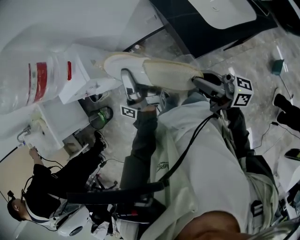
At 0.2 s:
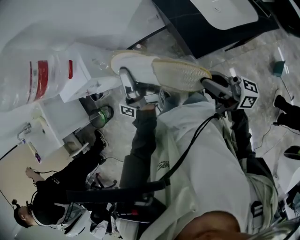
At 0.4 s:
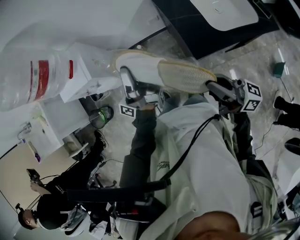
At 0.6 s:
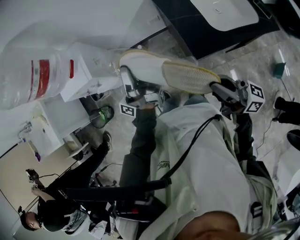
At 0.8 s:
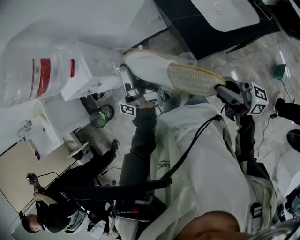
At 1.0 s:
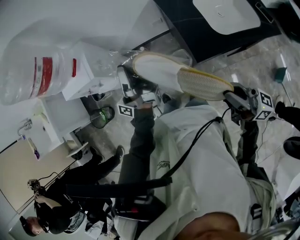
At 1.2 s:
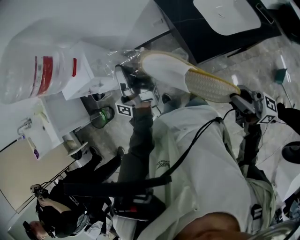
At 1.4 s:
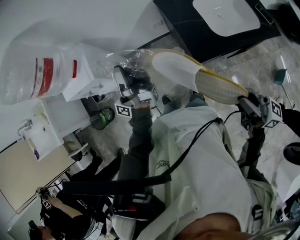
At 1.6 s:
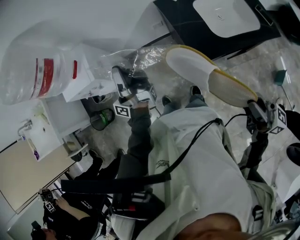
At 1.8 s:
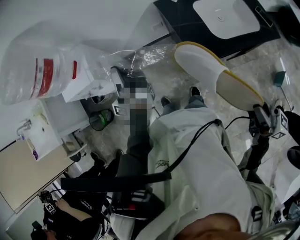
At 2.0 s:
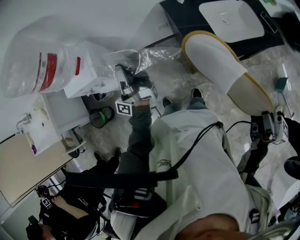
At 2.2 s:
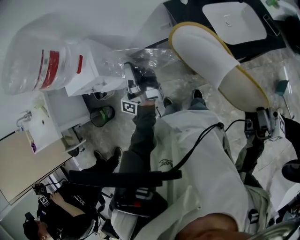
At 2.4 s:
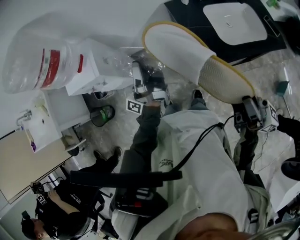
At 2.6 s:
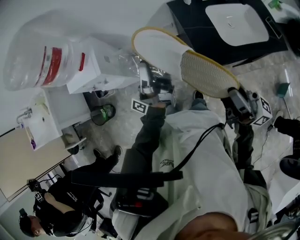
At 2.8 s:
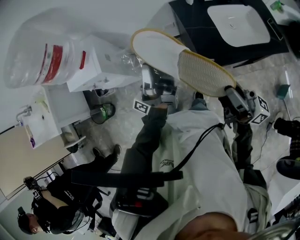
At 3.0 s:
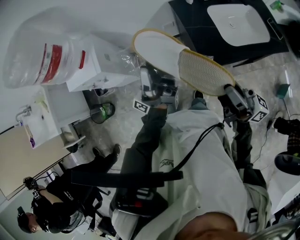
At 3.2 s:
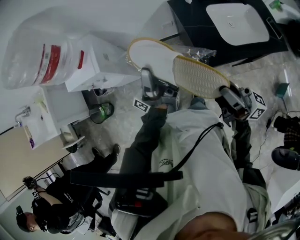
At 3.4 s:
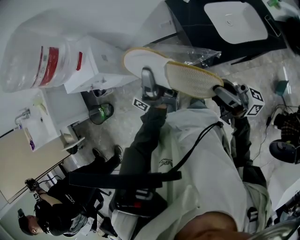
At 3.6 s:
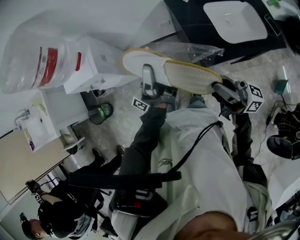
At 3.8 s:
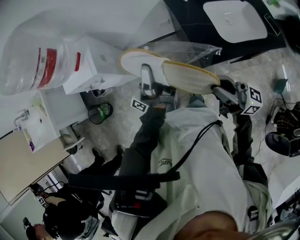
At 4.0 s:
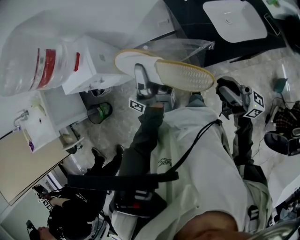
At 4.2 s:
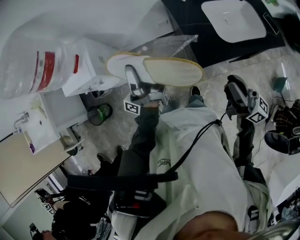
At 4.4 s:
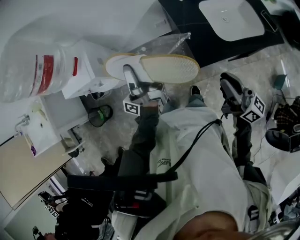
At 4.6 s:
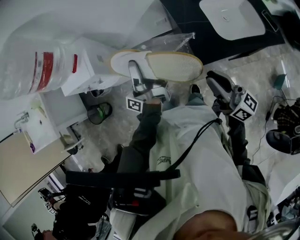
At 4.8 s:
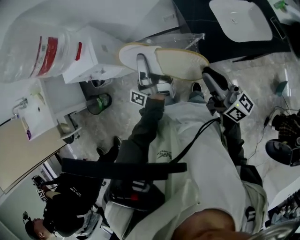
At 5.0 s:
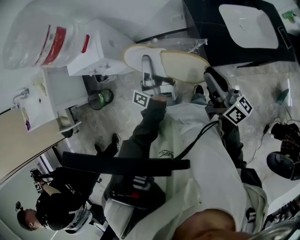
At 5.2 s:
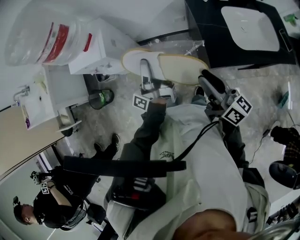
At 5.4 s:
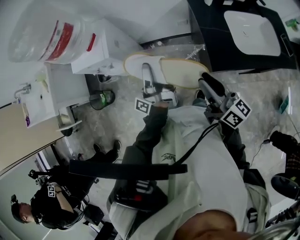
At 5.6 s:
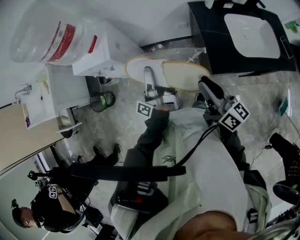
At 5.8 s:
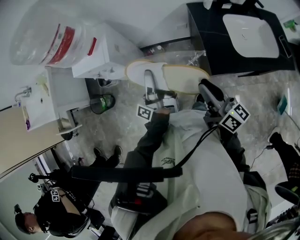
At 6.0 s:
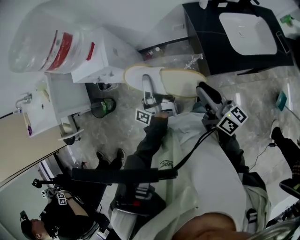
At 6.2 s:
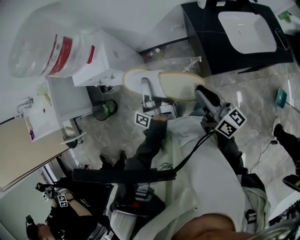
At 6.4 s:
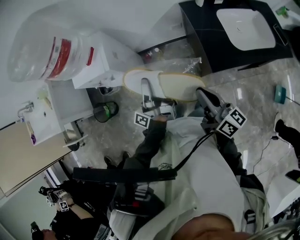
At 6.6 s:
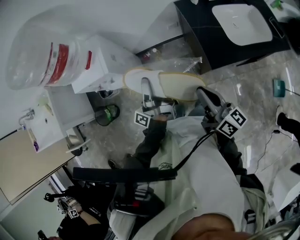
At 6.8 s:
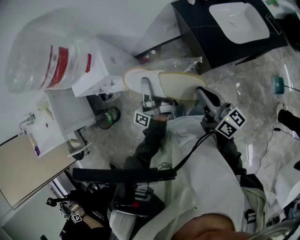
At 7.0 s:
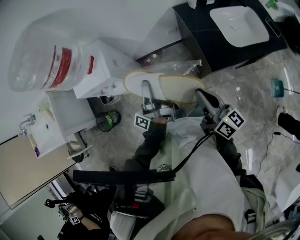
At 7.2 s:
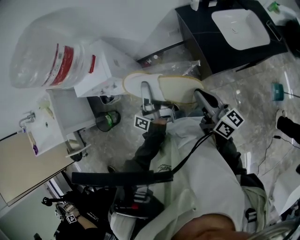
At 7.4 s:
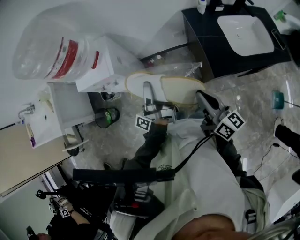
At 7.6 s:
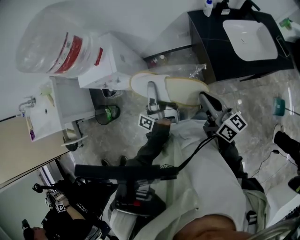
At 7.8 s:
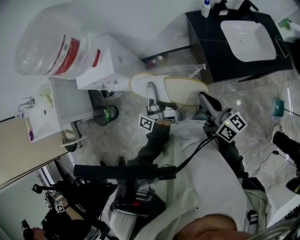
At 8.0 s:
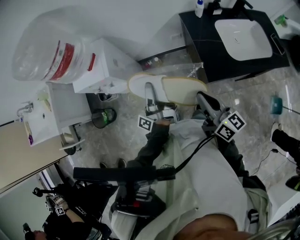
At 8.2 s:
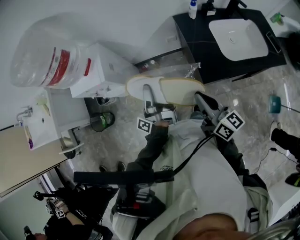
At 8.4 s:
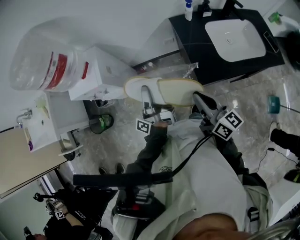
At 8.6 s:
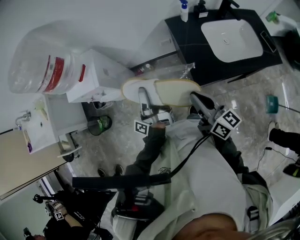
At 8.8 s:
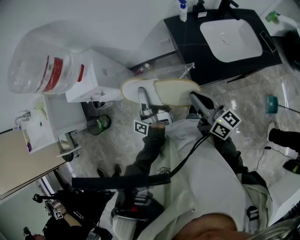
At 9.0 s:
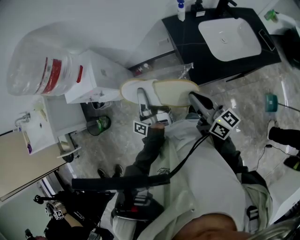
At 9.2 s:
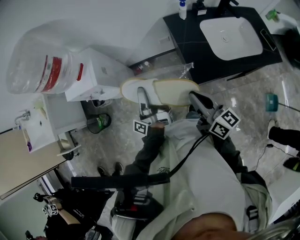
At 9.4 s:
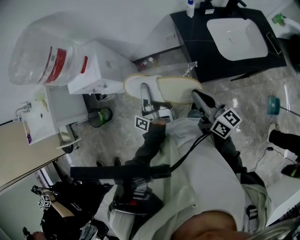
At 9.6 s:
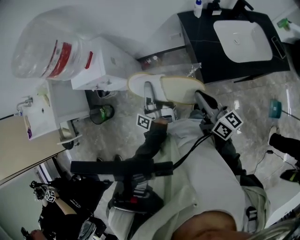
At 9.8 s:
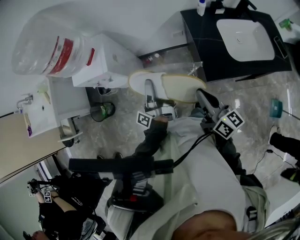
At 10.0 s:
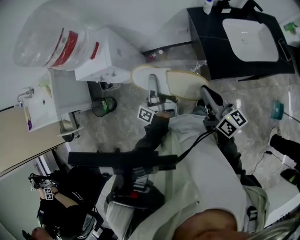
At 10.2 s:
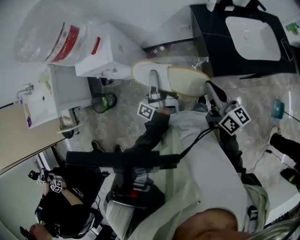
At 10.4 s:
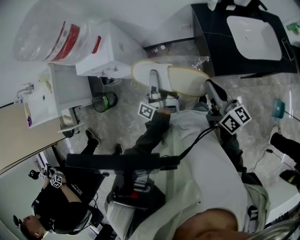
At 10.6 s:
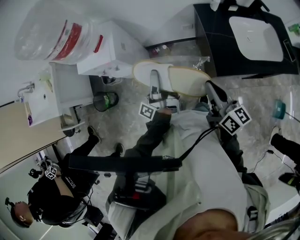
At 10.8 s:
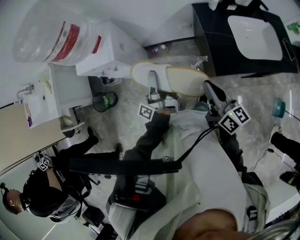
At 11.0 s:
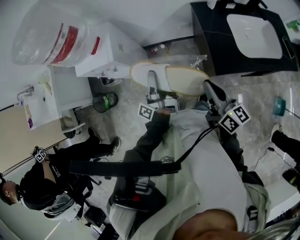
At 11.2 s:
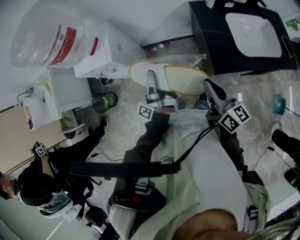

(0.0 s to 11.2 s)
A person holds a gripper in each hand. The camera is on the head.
0.0 s - 1.6 s: The right gripper moves some 20 cm.
1.6 s - 3.2 s: The right gripper ends up roughly 15 cm from where it was, and changes its angle by some 20 degrees.
3.2 s - 4.8 s: The right gripper moves some 5 cm, and swivels roughly 30 degrees.
4.8 s - 6.4 s: The right gripper shifts by roughly 10 cm.

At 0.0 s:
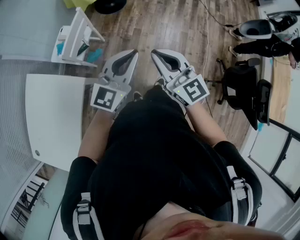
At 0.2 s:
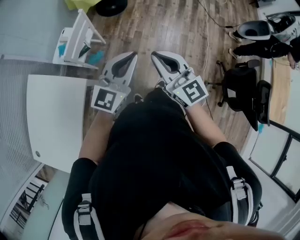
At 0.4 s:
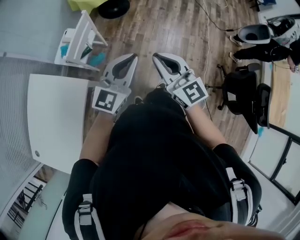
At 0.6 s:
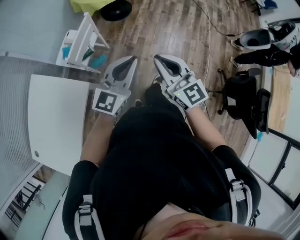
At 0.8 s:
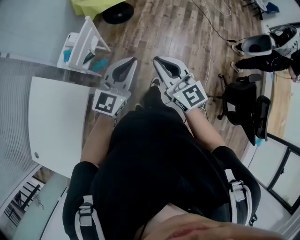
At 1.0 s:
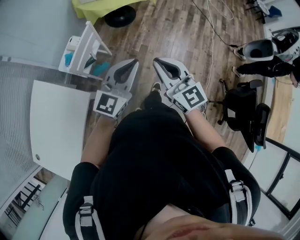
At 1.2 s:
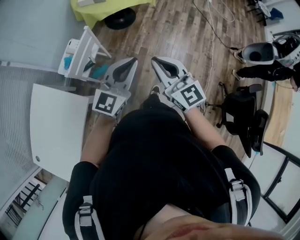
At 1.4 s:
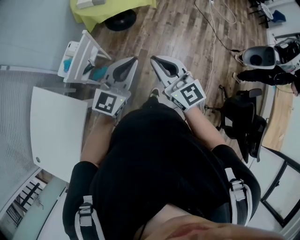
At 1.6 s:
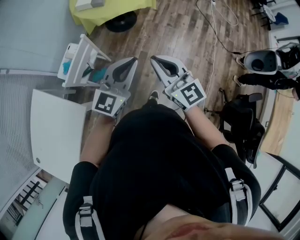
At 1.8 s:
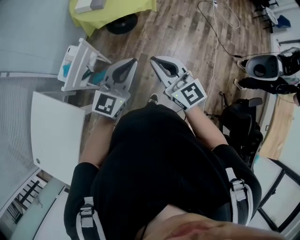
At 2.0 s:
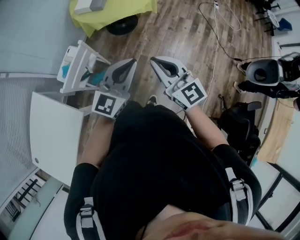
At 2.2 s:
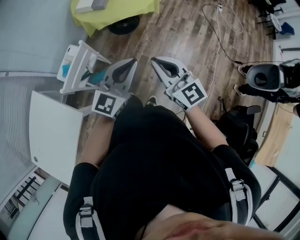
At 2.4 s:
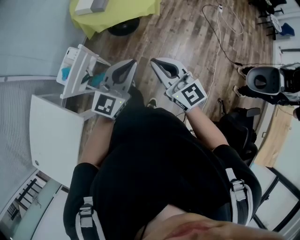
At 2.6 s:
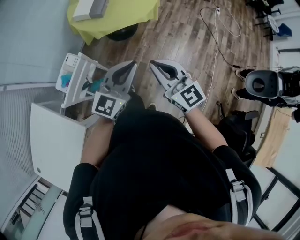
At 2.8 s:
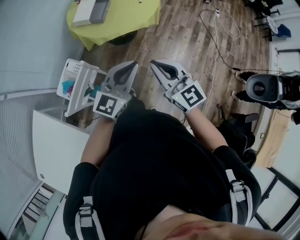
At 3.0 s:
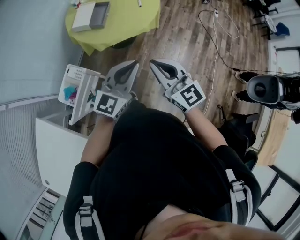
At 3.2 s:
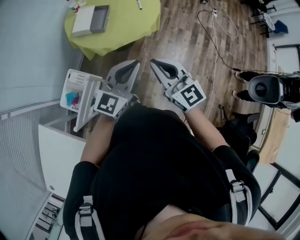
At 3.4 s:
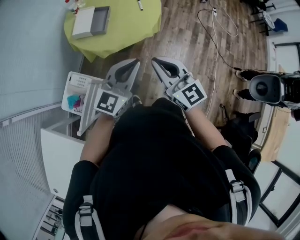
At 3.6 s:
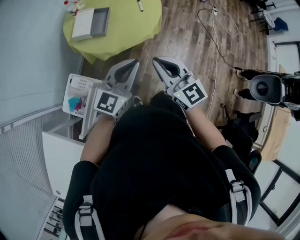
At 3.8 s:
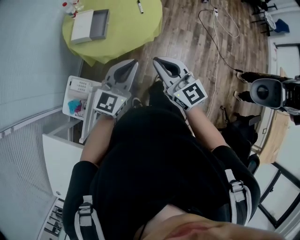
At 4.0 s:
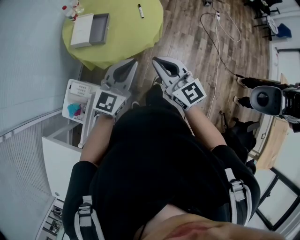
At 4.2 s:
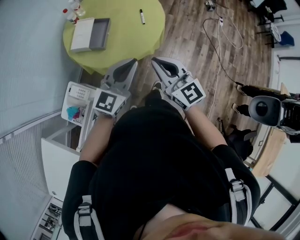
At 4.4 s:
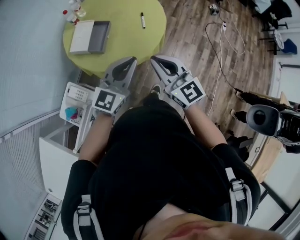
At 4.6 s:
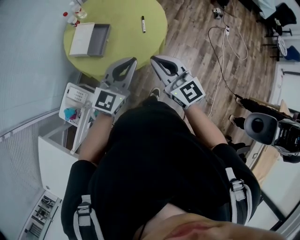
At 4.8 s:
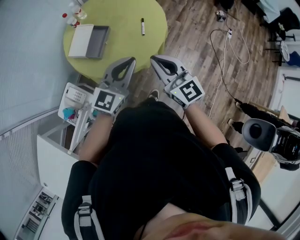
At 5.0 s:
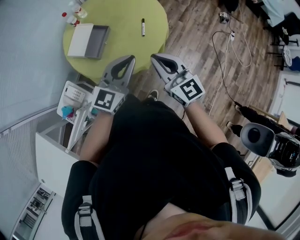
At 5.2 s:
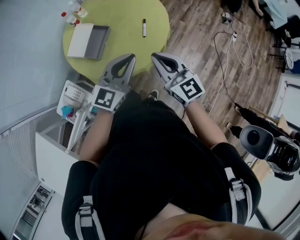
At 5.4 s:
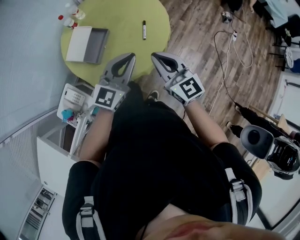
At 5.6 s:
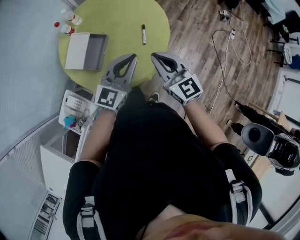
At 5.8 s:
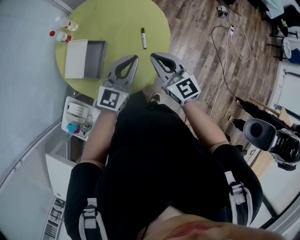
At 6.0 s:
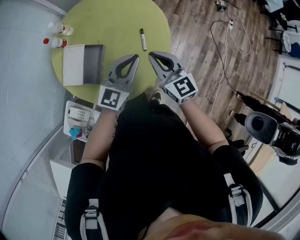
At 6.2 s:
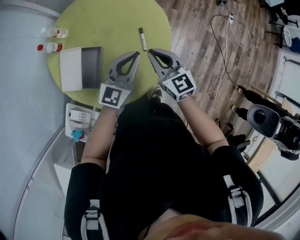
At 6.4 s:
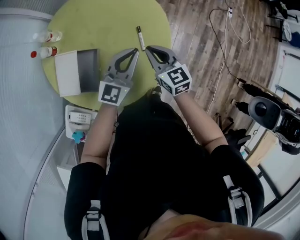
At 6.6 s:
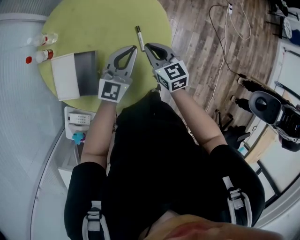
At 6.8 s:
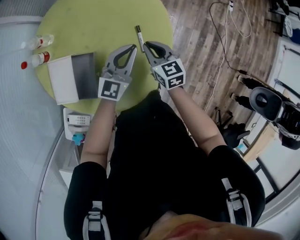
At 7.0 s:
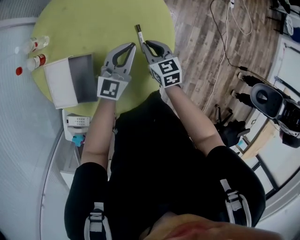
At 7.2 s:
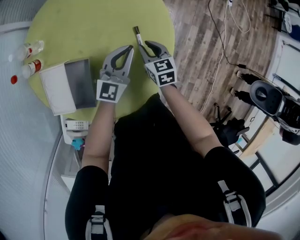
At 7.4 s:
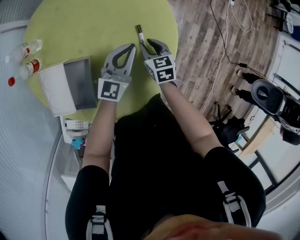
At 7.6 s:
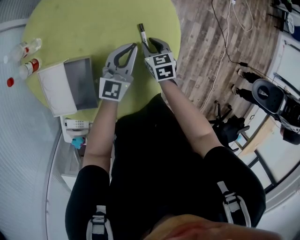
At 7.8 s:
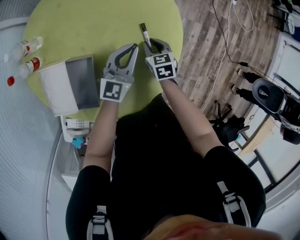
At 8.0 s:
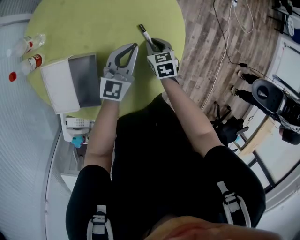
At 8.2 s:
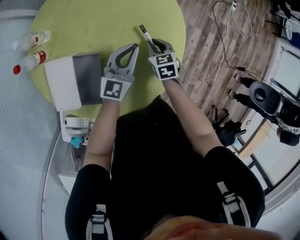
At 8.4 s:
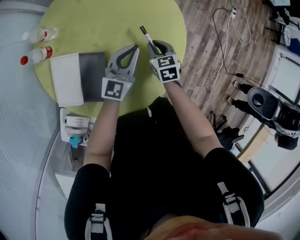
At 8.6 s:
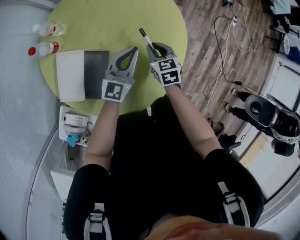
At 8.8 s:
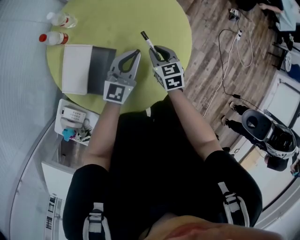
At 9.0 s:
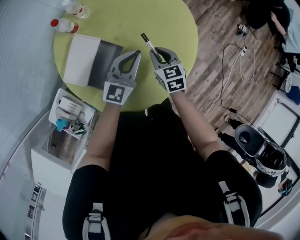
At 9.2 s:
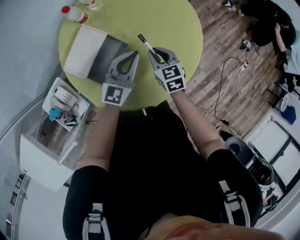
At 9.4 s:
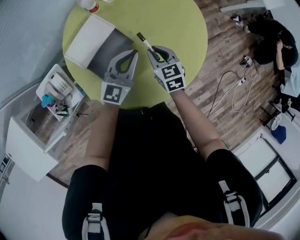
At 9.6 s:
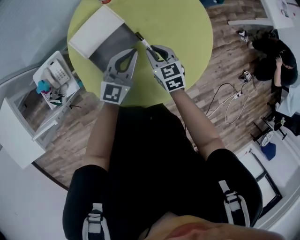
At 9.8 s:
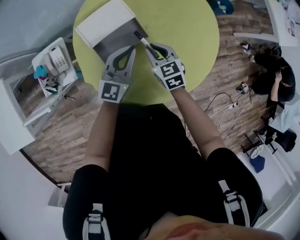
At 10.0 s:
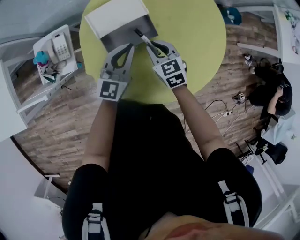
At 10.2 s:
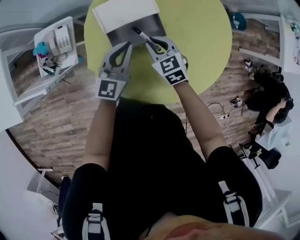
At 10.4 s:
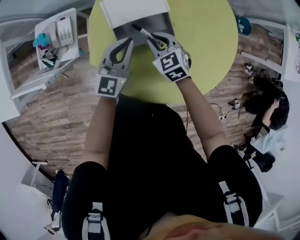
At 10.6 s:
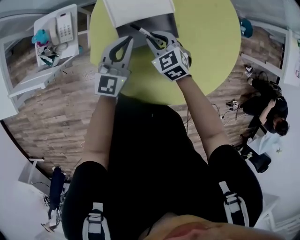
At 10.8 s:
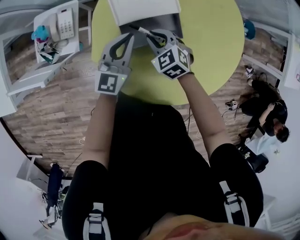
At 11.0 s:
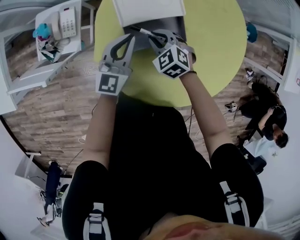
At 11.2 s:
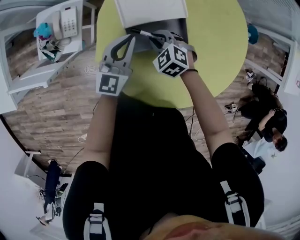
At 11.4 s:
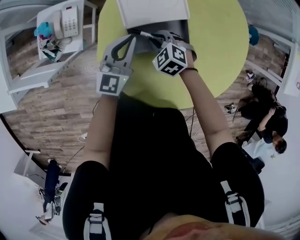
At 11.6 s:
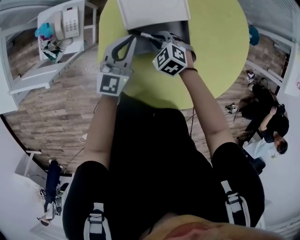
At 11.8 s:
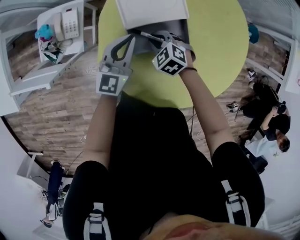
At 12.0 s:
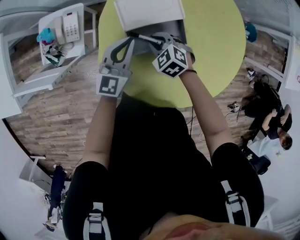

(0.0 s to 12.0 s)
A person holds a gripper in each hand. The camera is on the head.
0.0 s - 1.6 s: Both grippers move forward, roughly 20 cm.
1.6 s - 3.0 s: Both grippers move forward, approximately 25 cm.
3.0 s - 4.4 s: Both grippers travel together forward, some 25 cm.
4.4 s - 6.0 s: The right gripper heads forward and downward, covering some 30 cm. The left gripper is displaced forward by approximately 30 cm.
6.0 s - 7.6 s: The right gripper shifts roughly 35 cm downward, points its fingers roughly 40 degrees further downward, and opens its fingers. The left gripper travels downward and forward by approximately 25 cm.
7.6 s - 9.0 s: The left gripper moves to the left and upward, roughly 15 cm, and changes its angle by approximately 20 degrees, while the right gripper heads upward and to the left, covering roughly 15 cm, and swivels about 30 degrees.
9.0 s - 10.4 s: The left gripper changes place by about 20 cm, and changes its angle by some 50 degrees; the right gripper shifts by about 20 cm, and turns by roughly 70 degrees.
10.4 s - 12.0 s: The right gripper shifts by some 5 cm, and swivels approximately 20 degrees. The left gripper changes place by roughly 5 cm.

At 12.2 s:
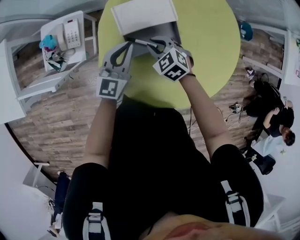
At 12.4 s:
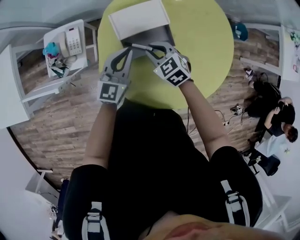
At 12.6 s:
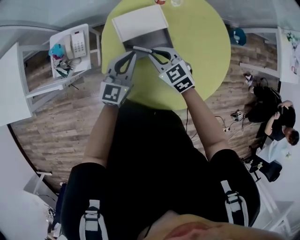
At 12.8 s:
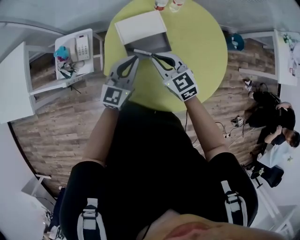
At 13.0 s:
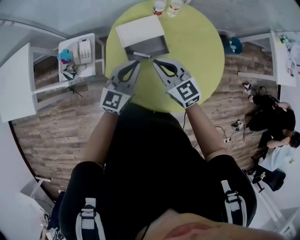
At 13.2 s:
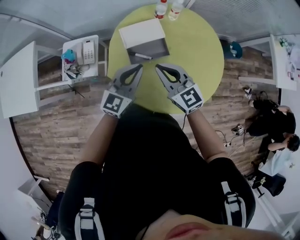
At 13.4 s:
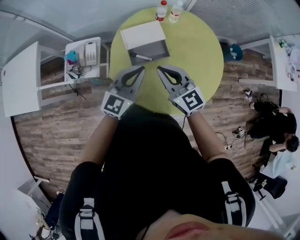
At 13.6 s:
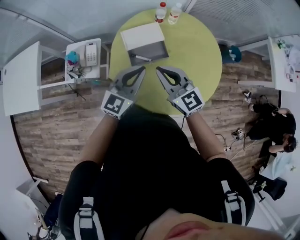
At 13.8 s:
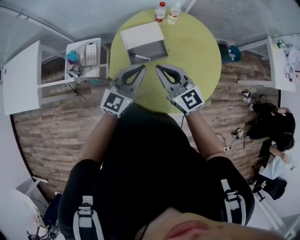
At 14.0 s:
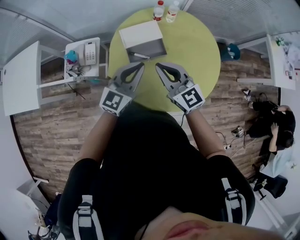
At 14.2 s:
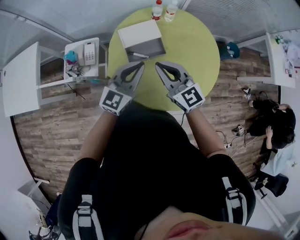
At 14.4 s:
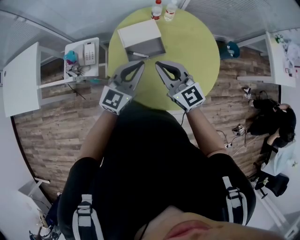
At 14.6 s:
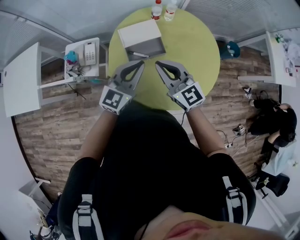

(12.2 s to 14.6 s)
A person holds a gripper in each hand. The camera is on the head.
12.2 s - 13.4 s: Both grippers move upward and backward, some 25 cm. The right gripper tips its fingers upward by some 40 degrees.
13.4 s - 14.6 s: The grippers stay close to where they were, moving slightly.
